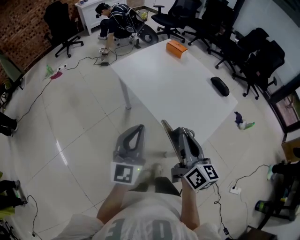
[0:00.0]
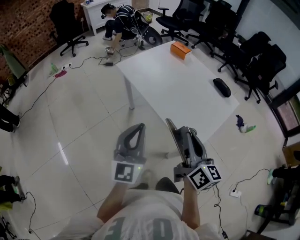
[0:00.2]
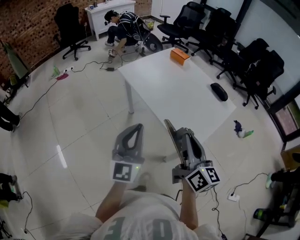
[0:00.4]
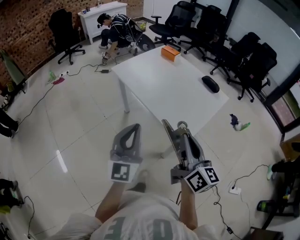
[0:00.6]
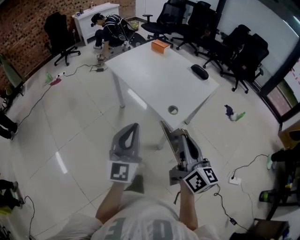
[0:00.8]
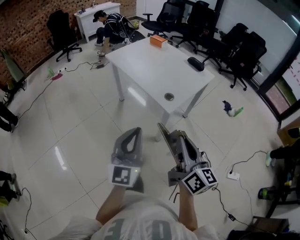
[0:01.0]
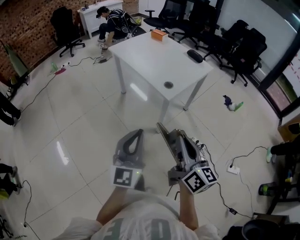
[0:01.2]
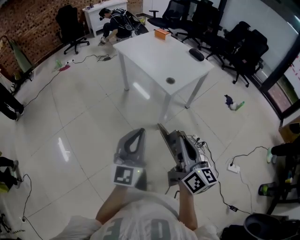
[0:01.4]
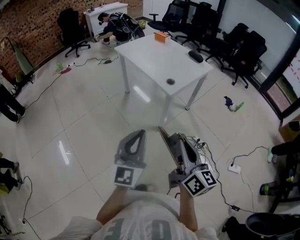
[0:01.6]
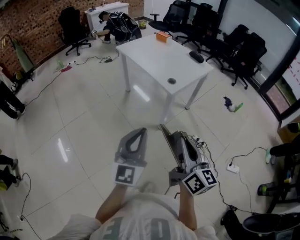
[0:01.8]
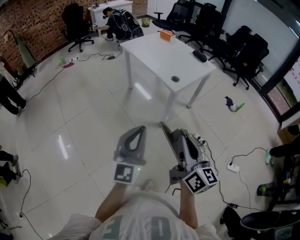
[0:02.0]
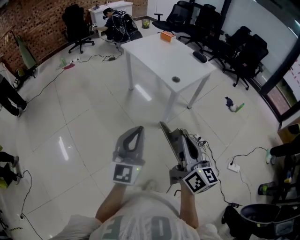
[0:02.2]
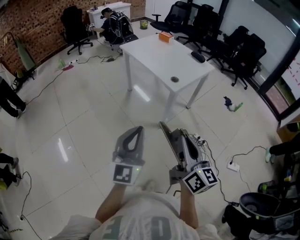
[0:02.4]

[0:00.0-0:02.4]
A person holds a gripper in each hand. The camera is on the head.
0:00.0 to 0:01.2: Both grippers travel together backward, approximately 35 cm.
0:01.2 to 0:02.4: Both grippers move backward, approximately 10 cm.

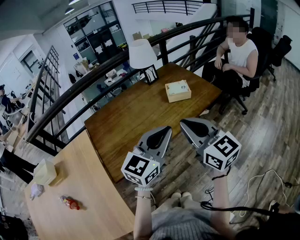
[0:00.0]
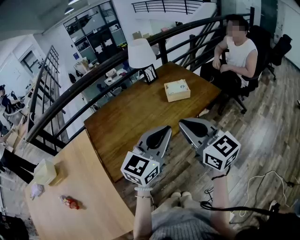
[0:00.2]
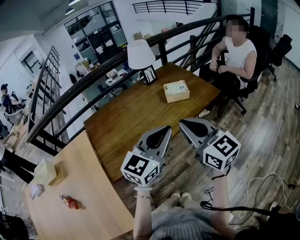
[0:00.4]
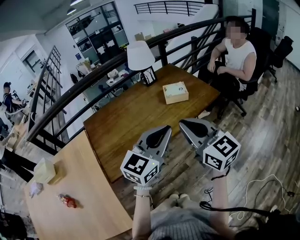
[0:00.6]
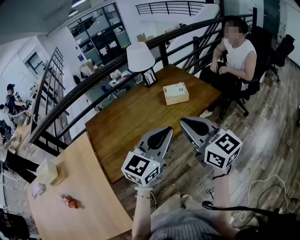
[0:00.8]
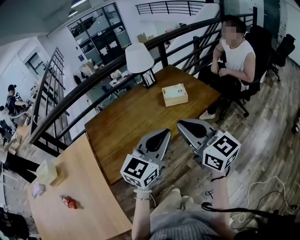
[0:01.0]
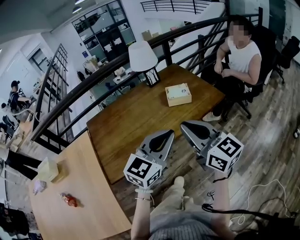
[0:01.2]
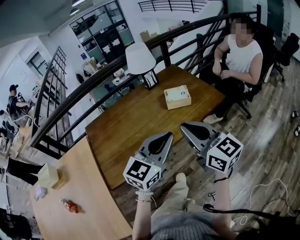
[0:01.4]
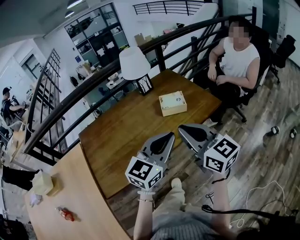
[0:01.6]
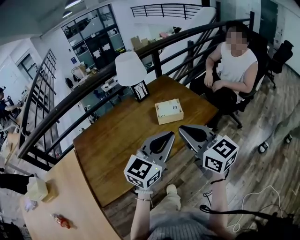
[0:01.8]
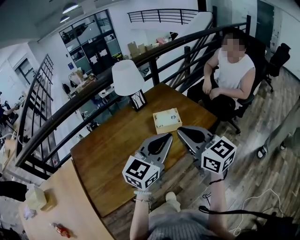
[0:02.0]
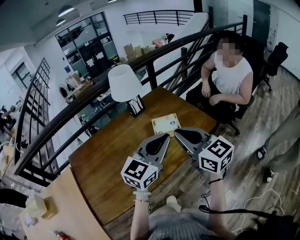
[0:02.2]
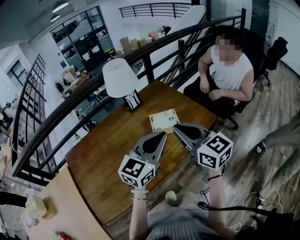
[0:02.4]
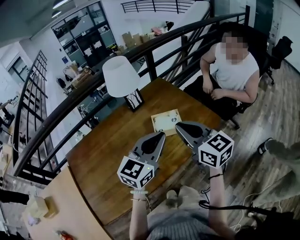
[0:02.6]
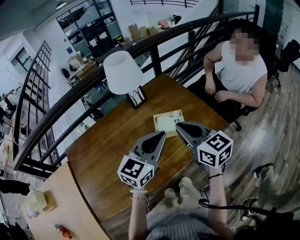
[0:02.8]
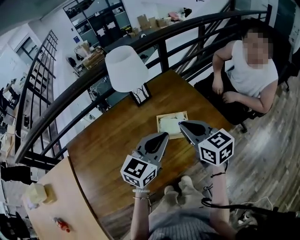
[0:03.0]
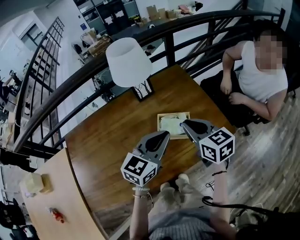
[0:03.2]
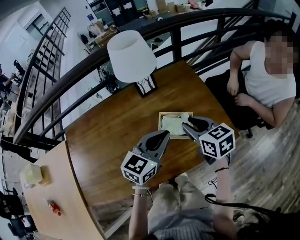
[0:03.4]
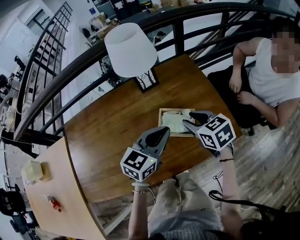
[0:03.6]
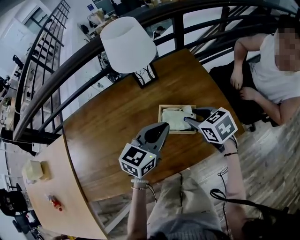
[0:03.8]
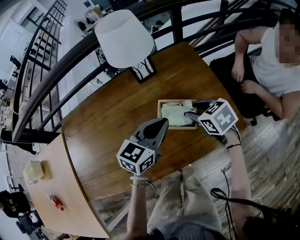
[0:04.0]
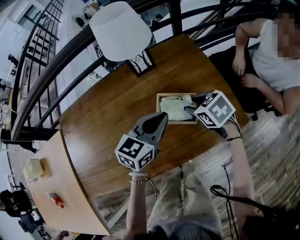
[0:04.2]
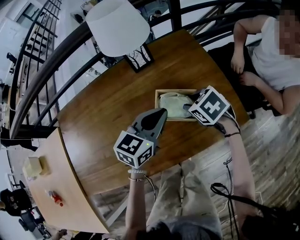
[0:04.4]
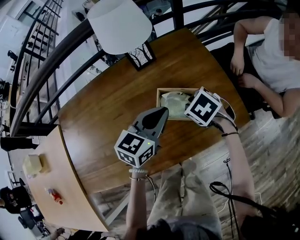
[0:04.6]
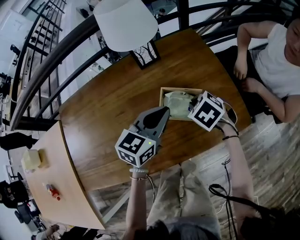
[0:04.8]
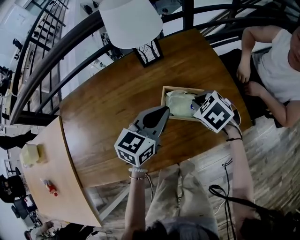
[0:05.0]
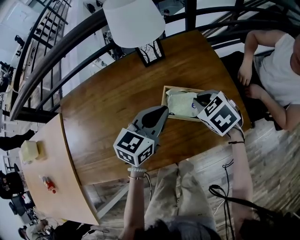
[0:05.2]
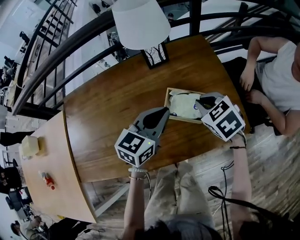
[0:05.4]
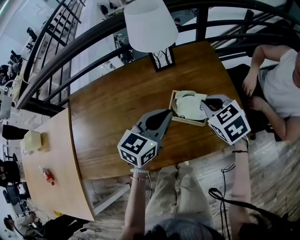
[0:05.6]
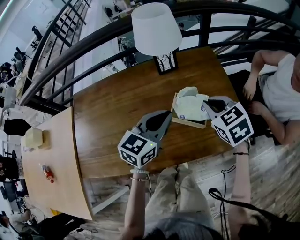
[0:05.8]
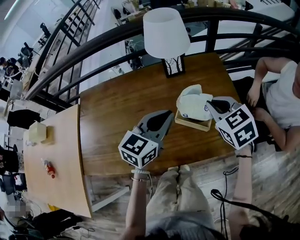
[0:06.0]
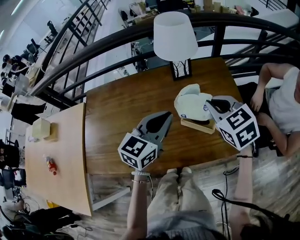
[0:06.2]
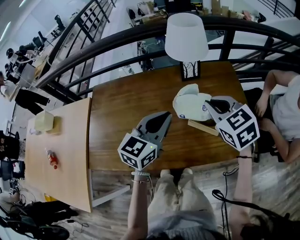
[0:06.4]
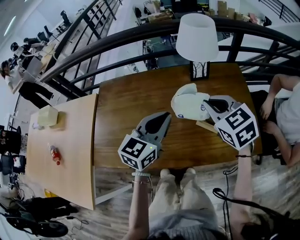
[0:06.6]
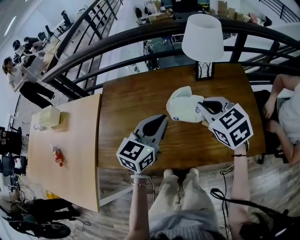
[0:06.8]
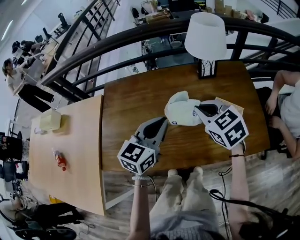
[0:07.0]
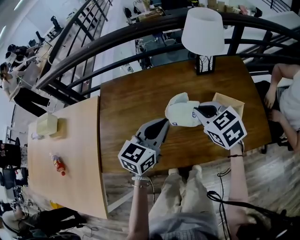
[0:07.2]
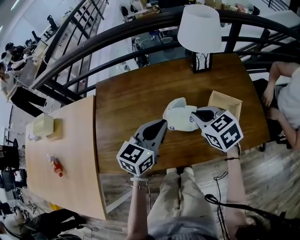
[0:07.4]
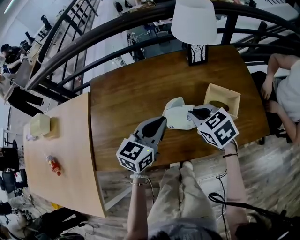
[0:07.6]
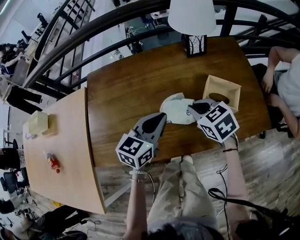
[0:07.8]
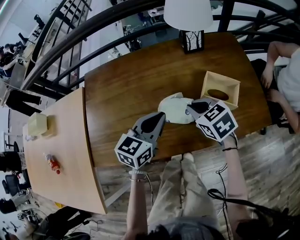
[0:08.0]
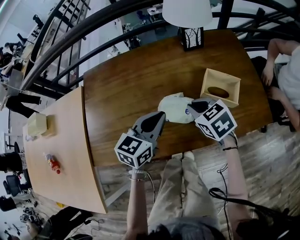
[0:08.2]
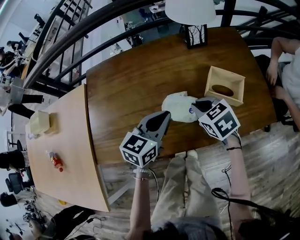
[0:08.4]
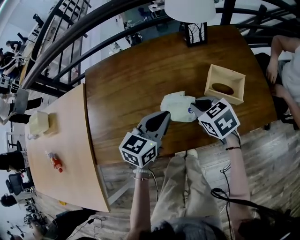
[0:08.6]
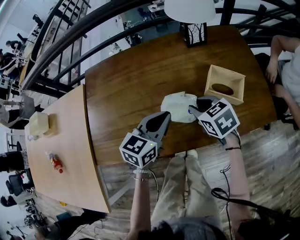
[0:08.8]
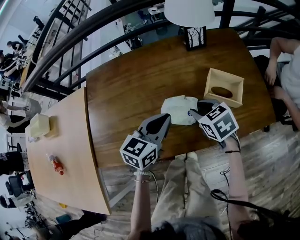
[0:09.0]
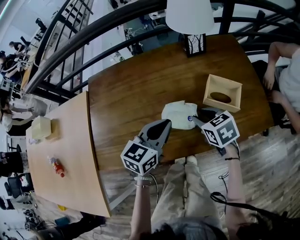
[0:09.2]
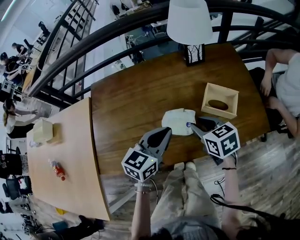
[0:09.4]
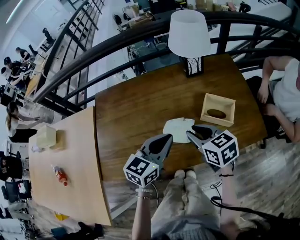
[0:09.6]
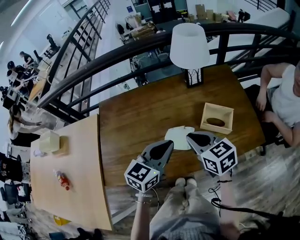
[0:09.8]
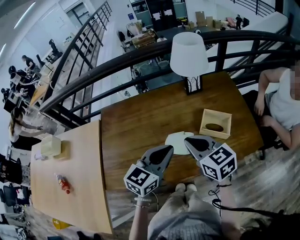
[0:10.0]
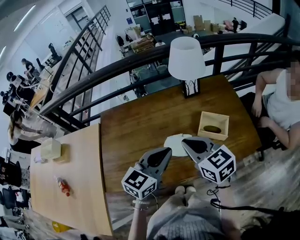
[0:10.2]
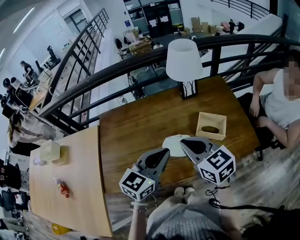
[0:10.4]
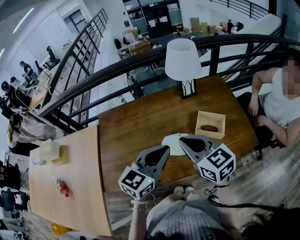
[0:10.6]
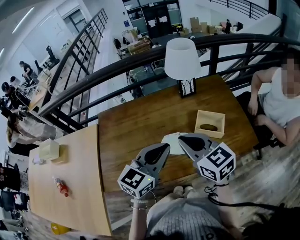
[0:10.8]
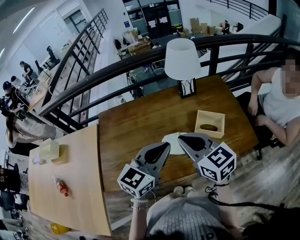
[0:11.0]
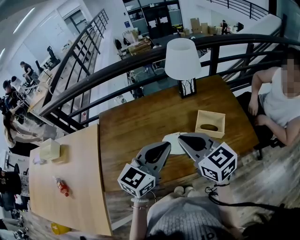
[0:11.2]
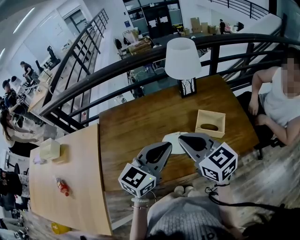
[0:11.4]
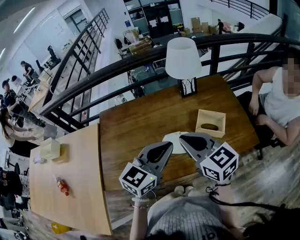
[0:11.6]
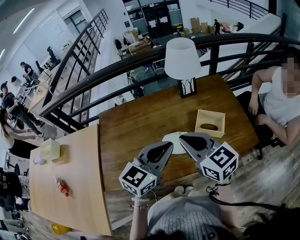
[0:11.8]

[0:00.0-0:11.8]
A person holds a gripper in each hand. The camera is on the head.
0:00.0 to 0:01.4: The right gripper goes roughly 10 cm forward and to the right. The left gripper travels to the right and forward by about 5 cm.
0:01.4 to 0:03.0: The two grippers go roughly 30 cm forward. The right gripper turns by about 20 degrees.
0:03.0 to 0:04.4: The left gripper shifts roughly 15 cm downward and forward, while the right gripper moves downward and forward, about 20 cm, angles its fingers downward, by about 40 degrees, and opens up.
0:04.4 to 0:06.0: The left gripper moves upward and to the left, approximately 10 cm, while the right gripper moves upward, approximately 15 cm, turns by approximately 30 degrees, and closes.
0:06.0 to 0:07.4: The two grippers go roughly 20 cm to the left.
0:07.4 to 0:08.8: Both grippers travel together downward, some 10 cm.
0:08.8 to 0:10.4: The two grippers go approximately 15 cm upward. The right gripper changes its angle by roughly 30 degrees.
0:10.4 to 0:11.8: The grippers make only small movements.

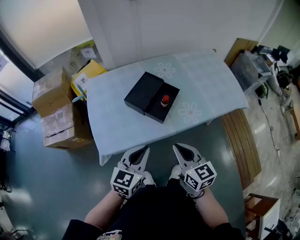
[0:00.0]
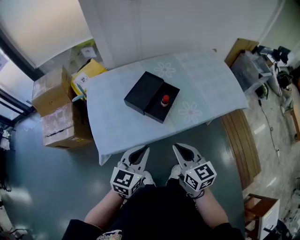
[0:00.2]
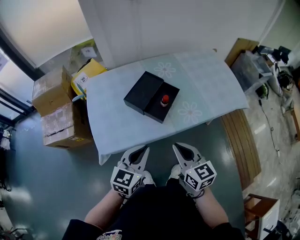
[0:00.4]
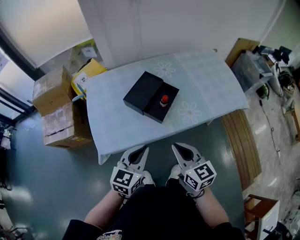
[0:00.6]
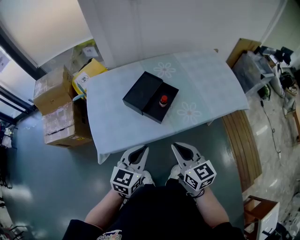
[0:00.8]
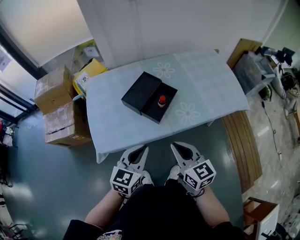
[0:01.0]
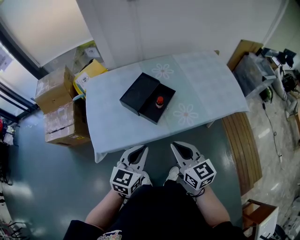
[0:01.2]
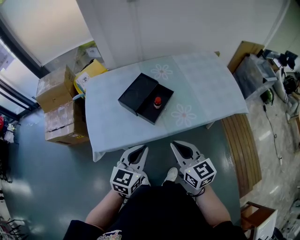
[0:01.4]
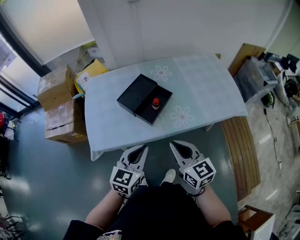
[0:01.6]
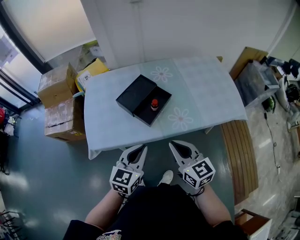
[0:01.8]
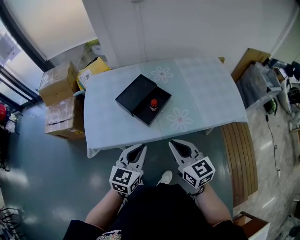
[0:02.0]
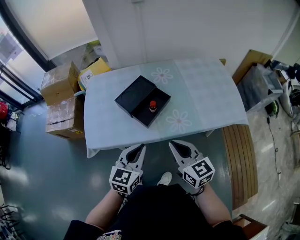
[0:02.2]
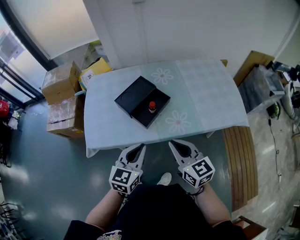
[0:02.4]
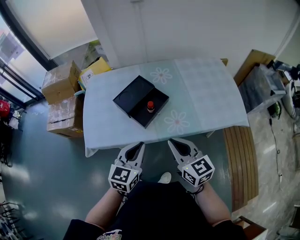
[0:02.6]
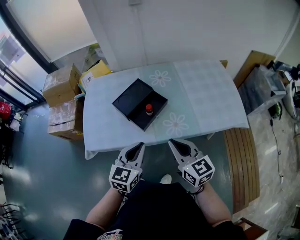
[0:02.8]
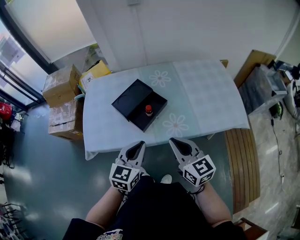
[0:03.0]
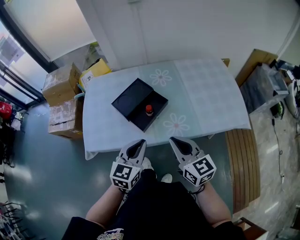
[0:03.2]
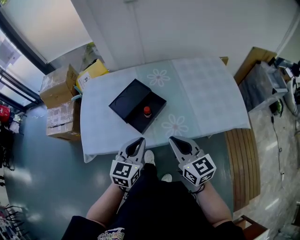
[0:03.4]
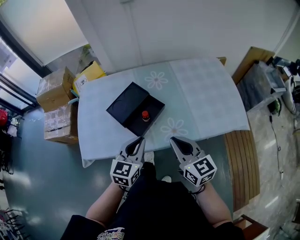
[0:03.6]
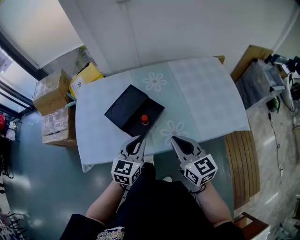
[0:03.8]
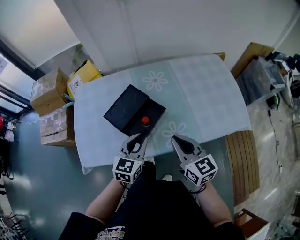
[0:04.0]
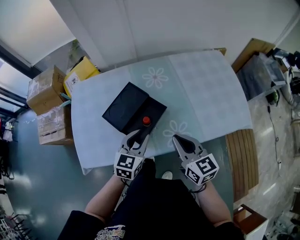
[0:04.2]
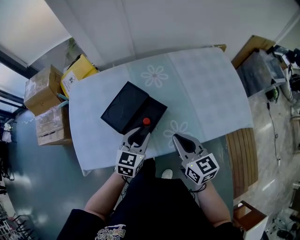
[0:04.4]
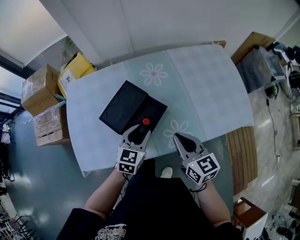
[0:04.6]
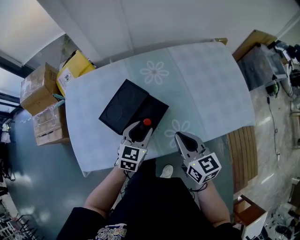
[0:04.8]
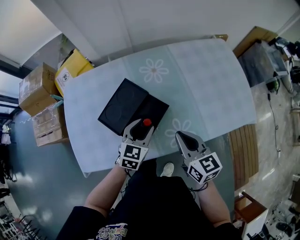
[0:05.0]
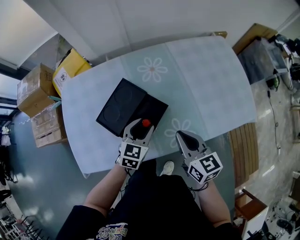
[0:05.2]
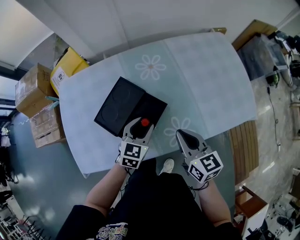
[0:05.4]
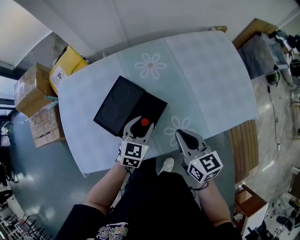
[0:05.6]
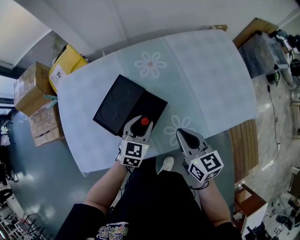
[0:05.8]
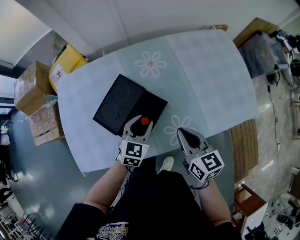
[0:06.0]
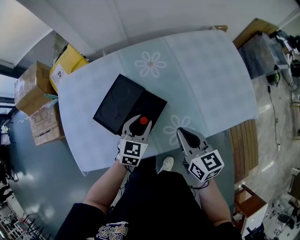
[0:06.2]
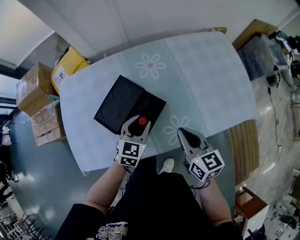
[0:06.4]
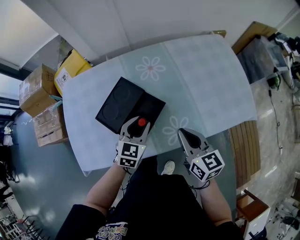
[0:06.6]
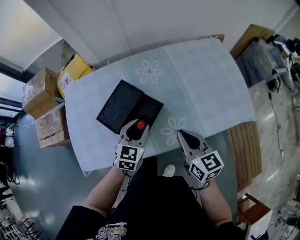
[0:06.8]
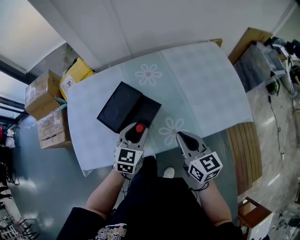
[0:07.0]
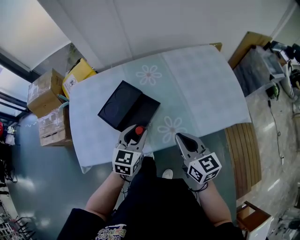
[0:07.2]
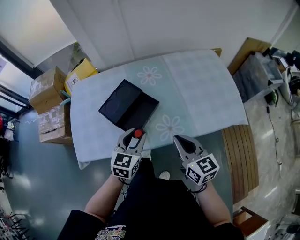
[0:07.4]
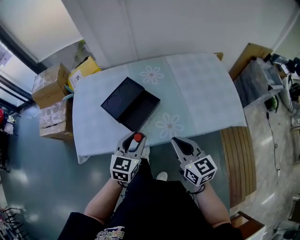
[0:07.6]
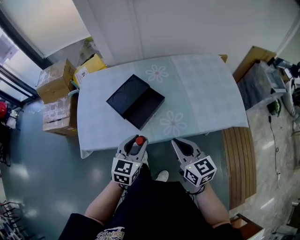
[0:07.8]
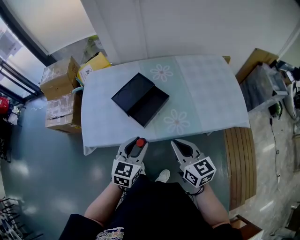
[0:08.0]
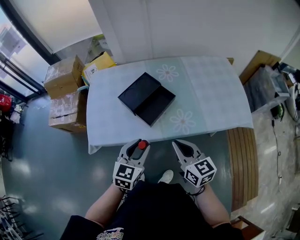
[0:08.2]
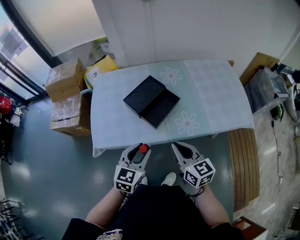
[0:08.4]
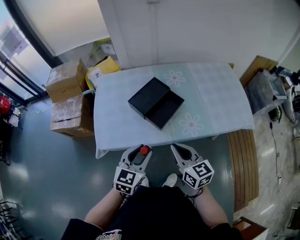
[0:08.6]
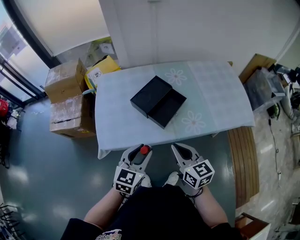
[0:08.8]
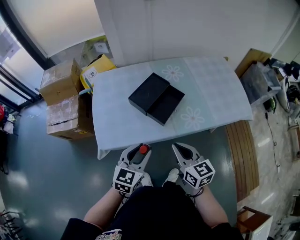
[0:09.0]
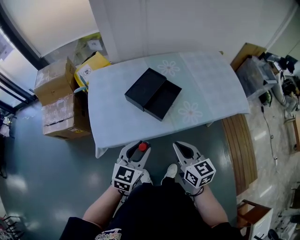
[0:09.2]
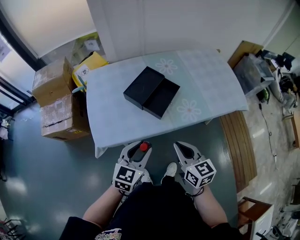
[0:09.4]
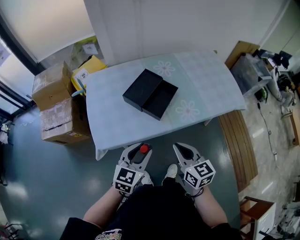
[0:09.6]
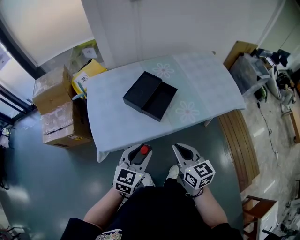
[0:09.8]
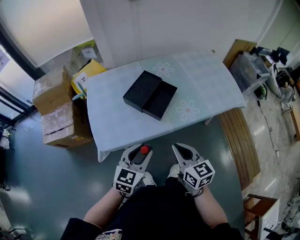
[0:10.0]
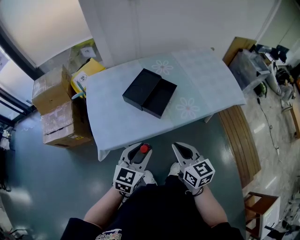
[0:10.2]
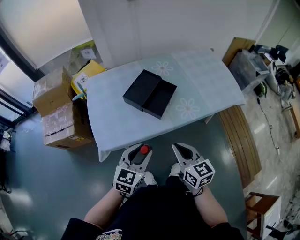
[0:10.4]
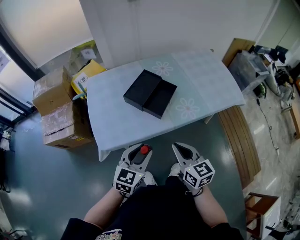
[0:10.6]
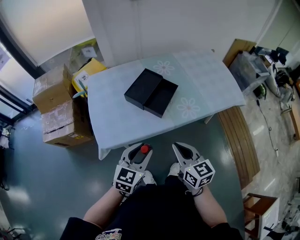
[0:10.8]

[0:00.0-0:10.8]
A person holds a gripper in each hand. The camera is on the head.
0:00.0 to 0:01.6: Both grippers move to the right, approximately 5 cm.
0:01.6 to 0:03.0: Both grippers travel together to the right, some 5 cm.
0:03.0 to 0:04.6: Both grippers move forward and downward, some 20 cm. The left gripper opens.
0:04.6 to 0:06.2: The left gripper shifts by about 5 cm.
0:06.2 to 0:07.8: The two grippers go some 20 cm backward and upward.
0:07.8 to 0:09.2: Both grippers move to the left and backward, approximately 15 cm.
0:09.2 to 0:10.8: There are only small adjustments of the grippers.
